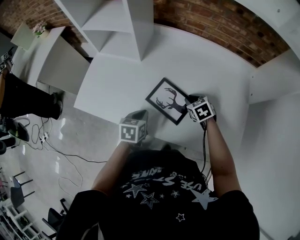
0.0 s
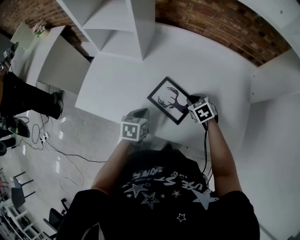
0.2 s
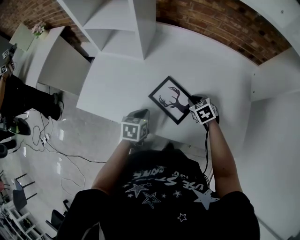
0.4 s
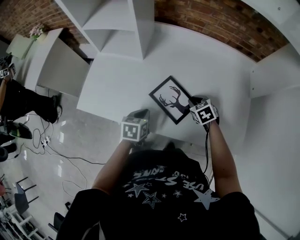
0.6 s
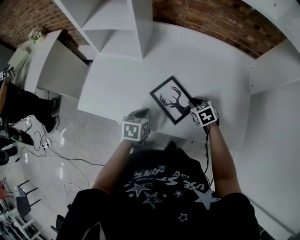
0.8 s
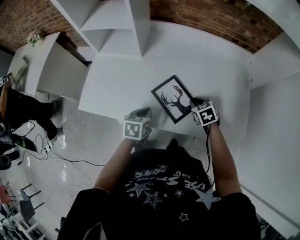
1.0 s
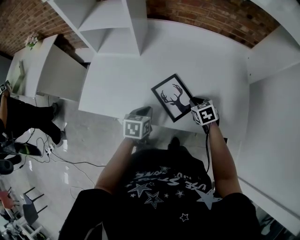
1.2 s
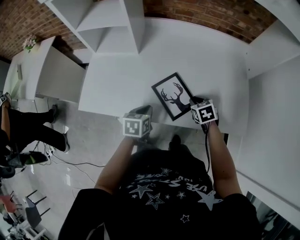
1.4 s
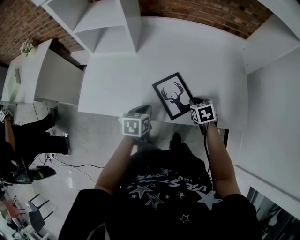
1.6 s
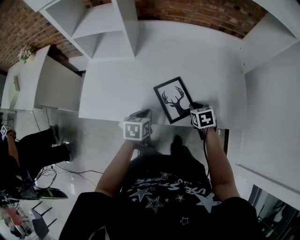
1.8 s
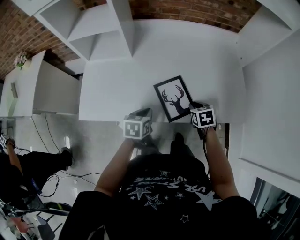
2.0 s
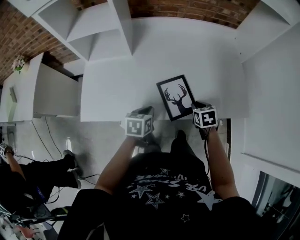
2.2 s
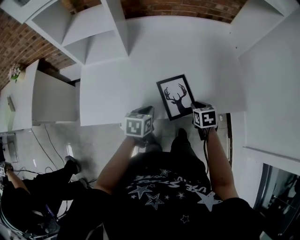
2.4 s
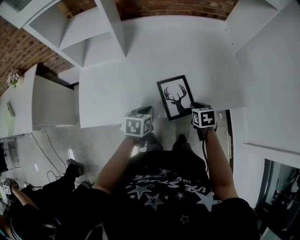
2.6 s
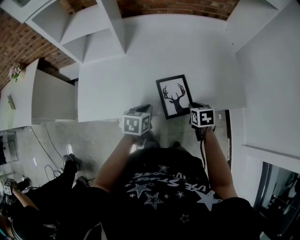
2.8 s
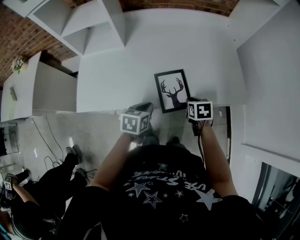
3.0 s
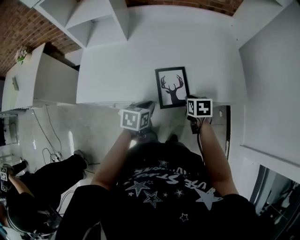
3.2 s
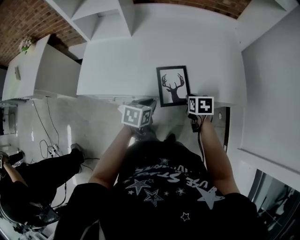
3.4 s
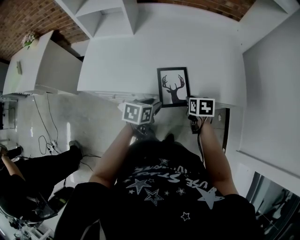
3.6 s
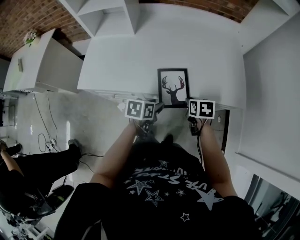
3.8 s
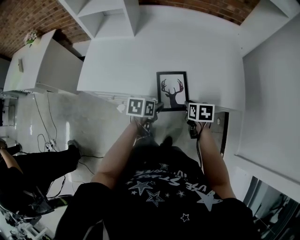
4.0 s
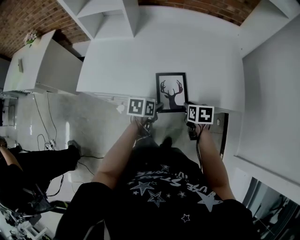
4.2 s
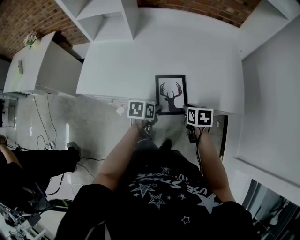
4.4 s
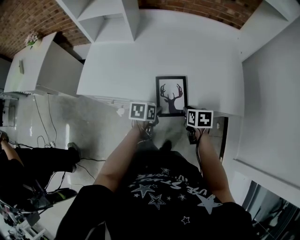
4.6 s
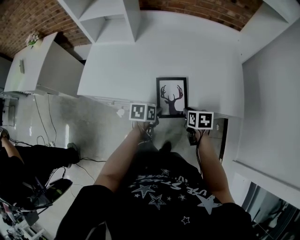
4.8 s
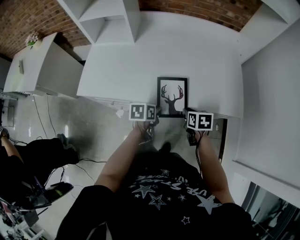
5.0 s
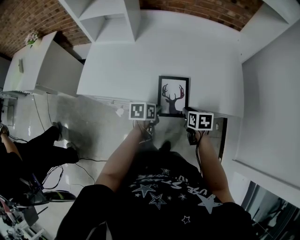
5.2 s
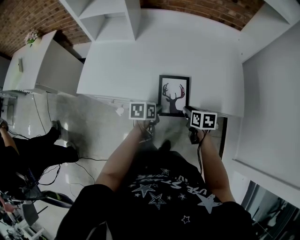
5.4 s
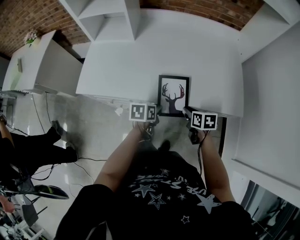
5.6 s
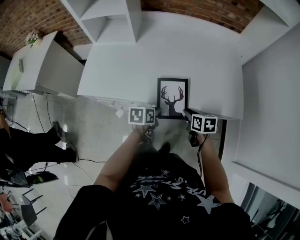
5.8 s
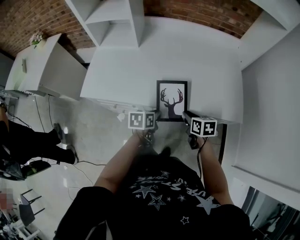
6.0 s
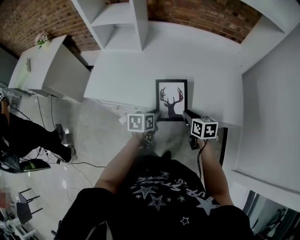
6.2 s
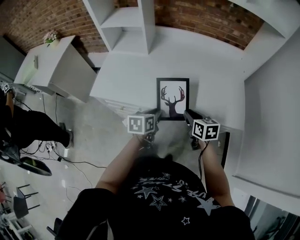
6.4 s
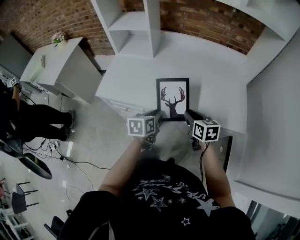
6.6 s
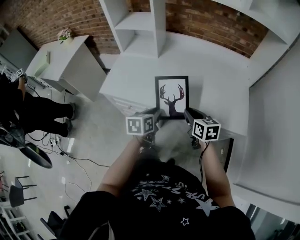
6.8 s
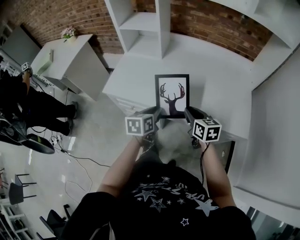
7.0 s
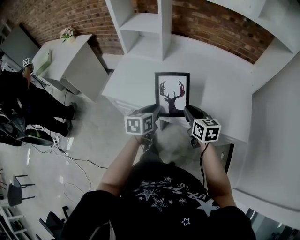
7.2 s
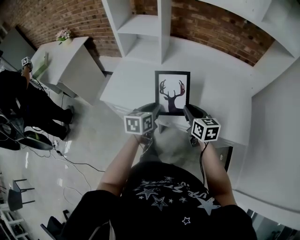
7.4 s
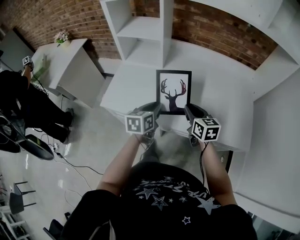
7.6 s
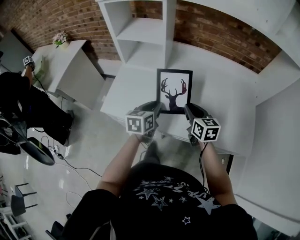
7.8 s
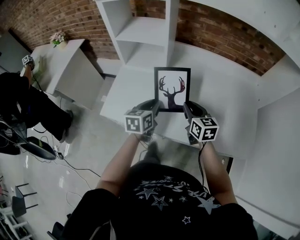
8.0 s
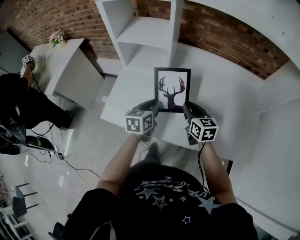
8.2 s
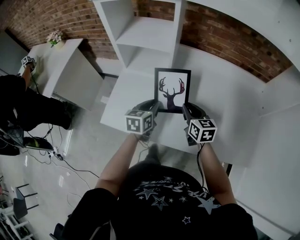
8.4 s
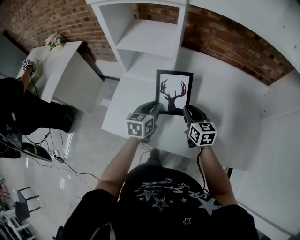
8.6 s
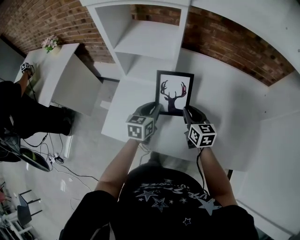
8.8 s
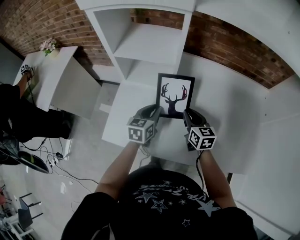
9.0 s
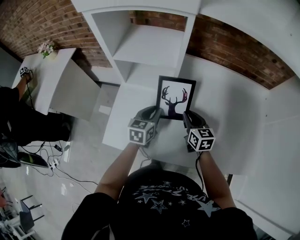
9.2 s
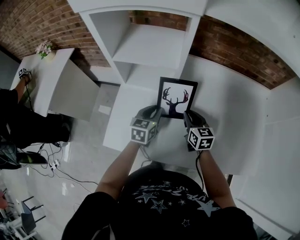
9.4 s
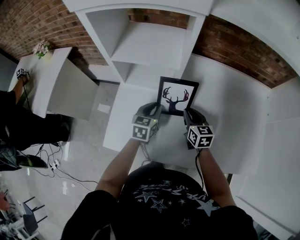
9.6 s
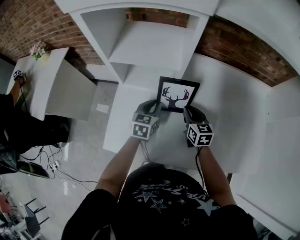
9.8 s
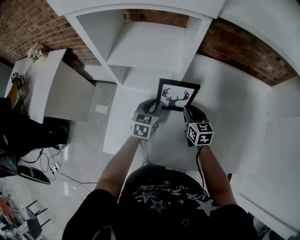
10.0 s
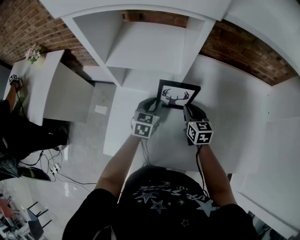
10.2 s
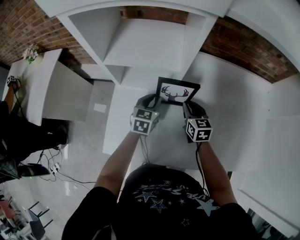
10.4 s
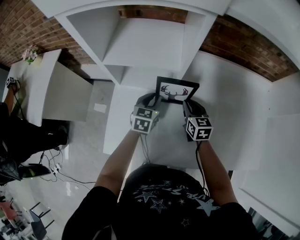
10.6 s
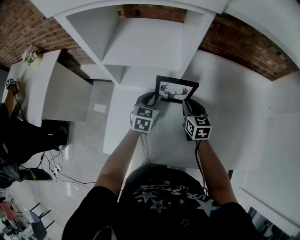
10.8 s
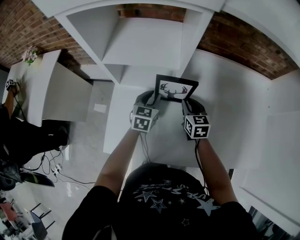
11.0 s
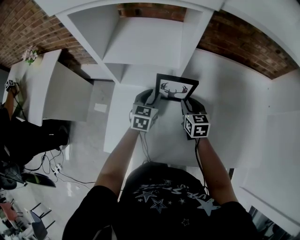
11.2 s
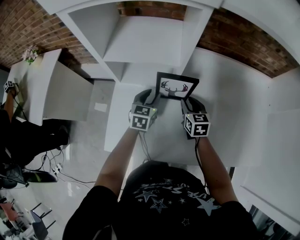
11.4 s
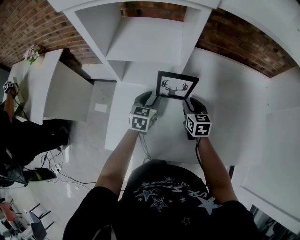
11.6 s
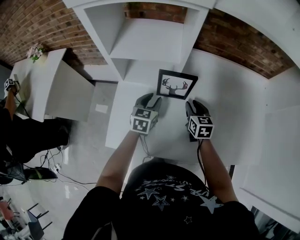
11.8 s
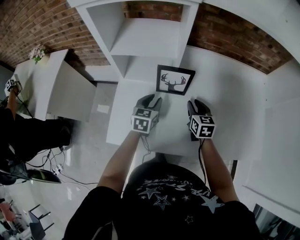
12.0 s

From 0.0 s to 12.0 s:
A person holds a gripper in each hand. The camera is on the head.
From 0.0 s to 1.6 s: The right gripper goes about 10 cm backward, and rotates about 20 degrees.
From 1.6 s to 3.0 s: The left gripper moves about 5 cm. The right gripper travels backward by some 10 cm, and rotates some 20 degrees.
From 3.0 s to 4.4 s: The left gripper goes roughly 5 cm to the right, swivels about 20 degrees, and opens its fingers.
From 4.4 s to 6.0 s: The grippers move only a little.
From 6.0 s to 7.6 s: The left gripper heads upward, to the left and forward, covering approximately 20 cm, and rotates approximately 30 degrees. The right gripper travels upward, forward and to the left by approximately 20 cm, and swivels about 30 degrees.
From 7.6 s to 9.0 s: The right gripper travels forward and to the left by some 20 cm; the left gripper is displaced forward by about 20 cm.
From 9.0 s to 10.4 s: Both grippers move forward, some 10 cm.
From 10.4 s to 12.0 s: The two grippers go some 5 cm backward.

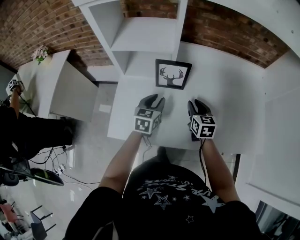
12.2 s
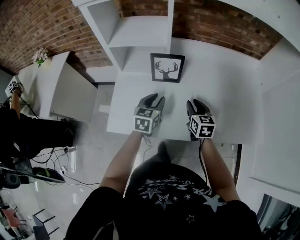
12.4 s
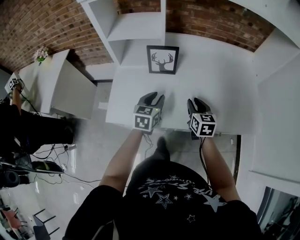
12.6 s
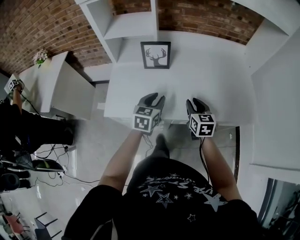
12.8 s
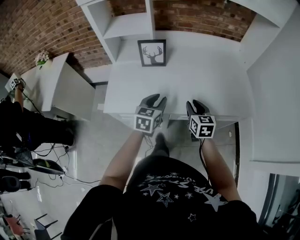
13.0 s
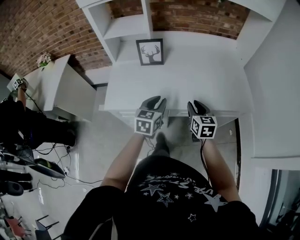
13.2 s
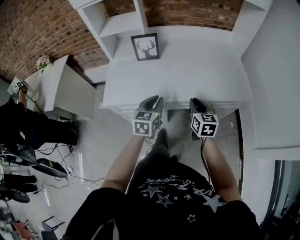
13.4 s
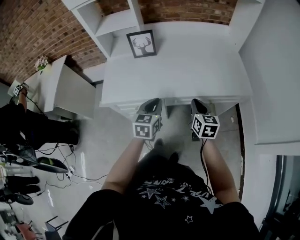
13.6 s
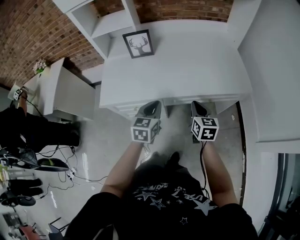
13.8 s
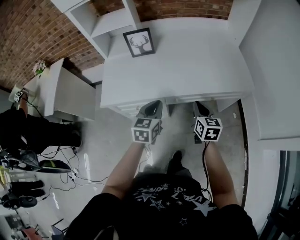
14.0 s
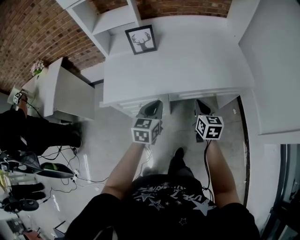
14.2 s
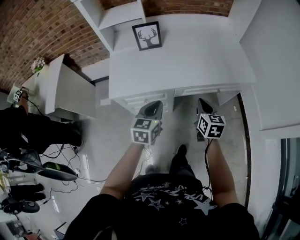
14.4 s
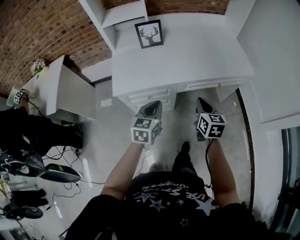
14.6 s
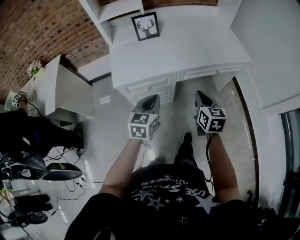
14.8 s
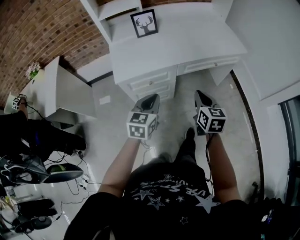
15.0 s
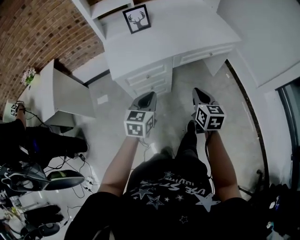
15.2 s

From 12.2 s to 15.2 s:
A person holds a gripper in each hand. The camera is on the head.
From 12.2 s to 13.8 s: Both grippers travel together backward and to the right, approximately 30 cm. The left gripper closes up. The right gripper closes up.
From 13.8 s to 15.2 s: The two grippers go approximately 25 cm backward and to the left.

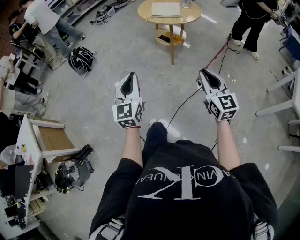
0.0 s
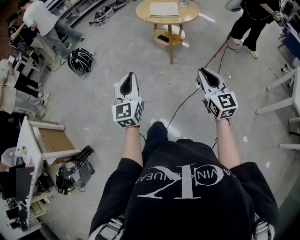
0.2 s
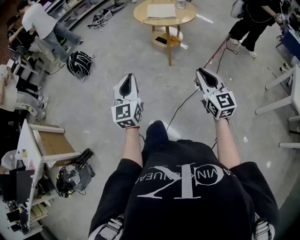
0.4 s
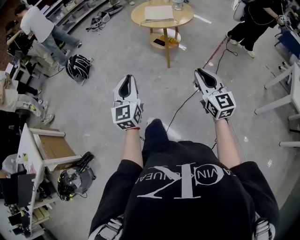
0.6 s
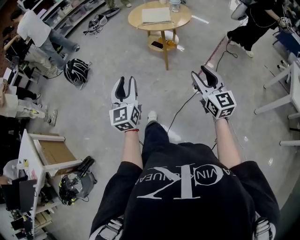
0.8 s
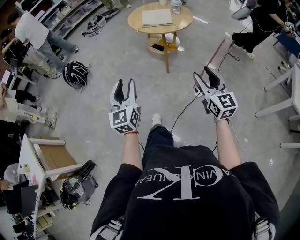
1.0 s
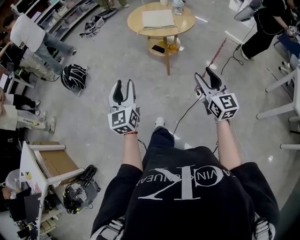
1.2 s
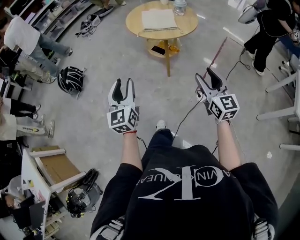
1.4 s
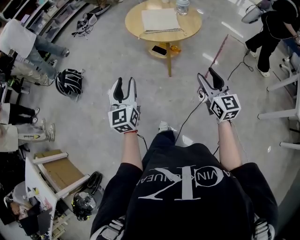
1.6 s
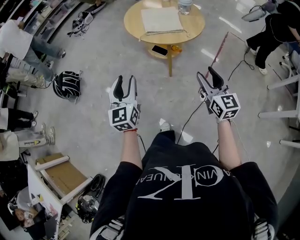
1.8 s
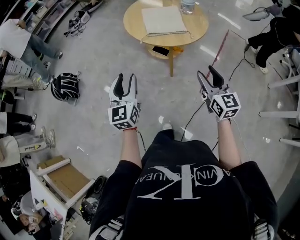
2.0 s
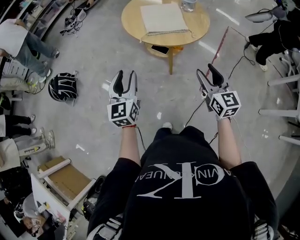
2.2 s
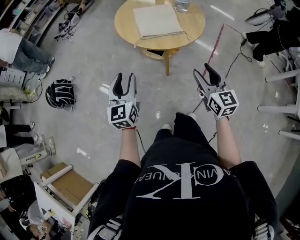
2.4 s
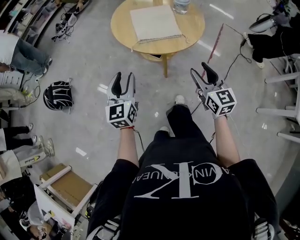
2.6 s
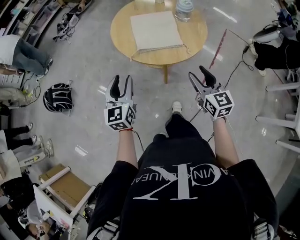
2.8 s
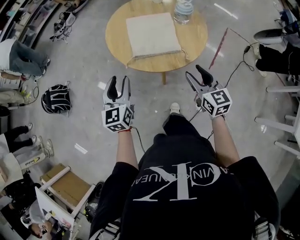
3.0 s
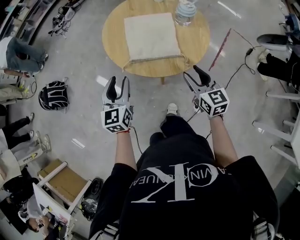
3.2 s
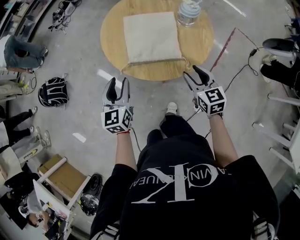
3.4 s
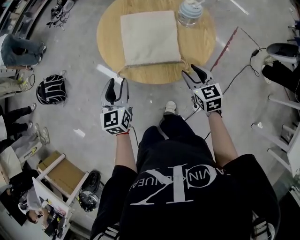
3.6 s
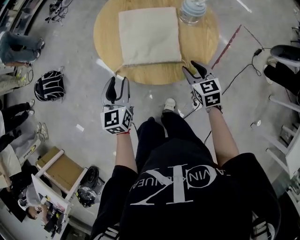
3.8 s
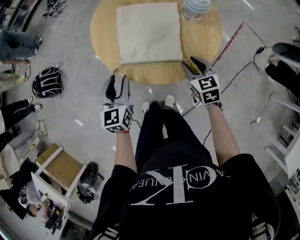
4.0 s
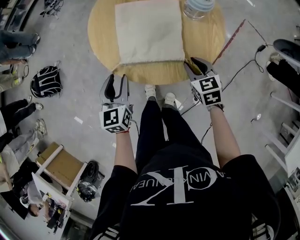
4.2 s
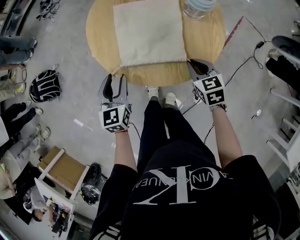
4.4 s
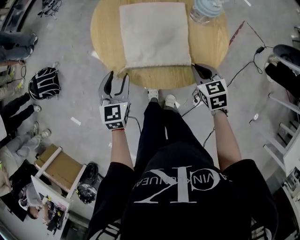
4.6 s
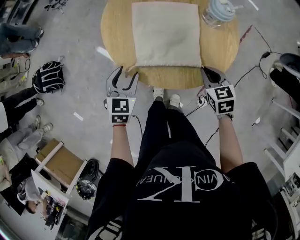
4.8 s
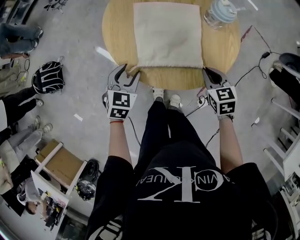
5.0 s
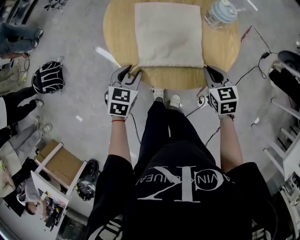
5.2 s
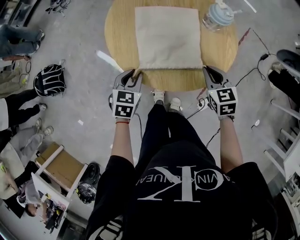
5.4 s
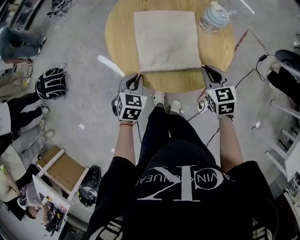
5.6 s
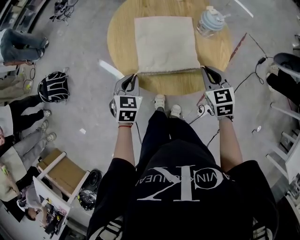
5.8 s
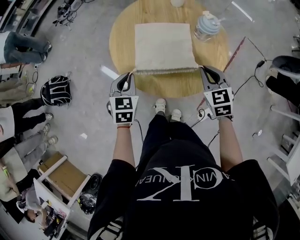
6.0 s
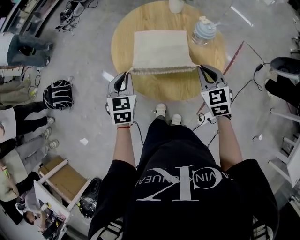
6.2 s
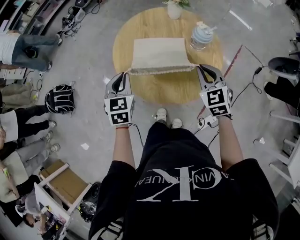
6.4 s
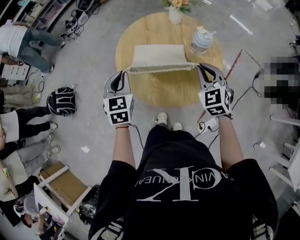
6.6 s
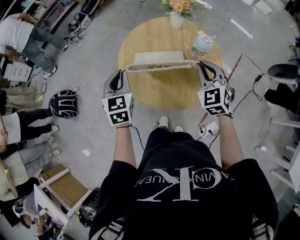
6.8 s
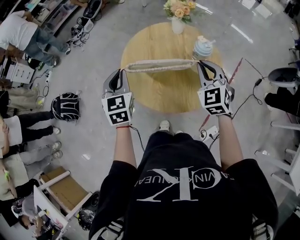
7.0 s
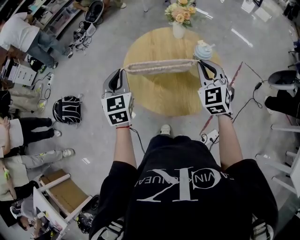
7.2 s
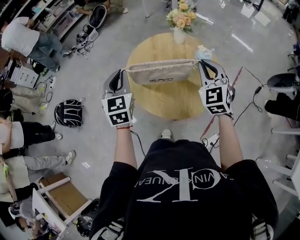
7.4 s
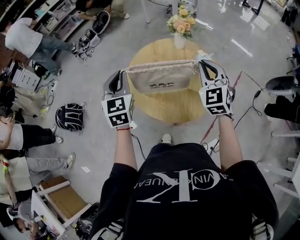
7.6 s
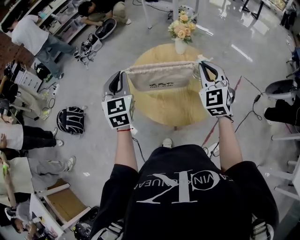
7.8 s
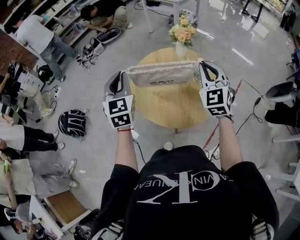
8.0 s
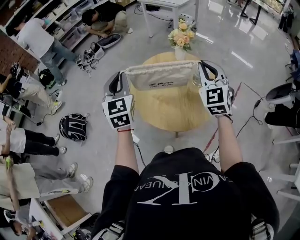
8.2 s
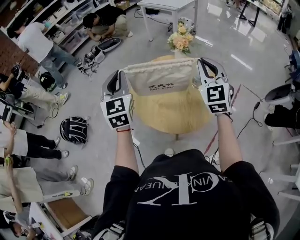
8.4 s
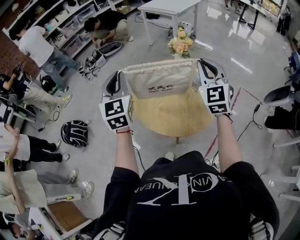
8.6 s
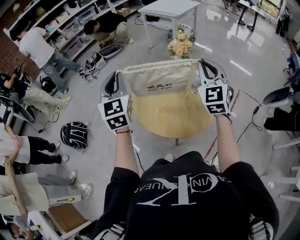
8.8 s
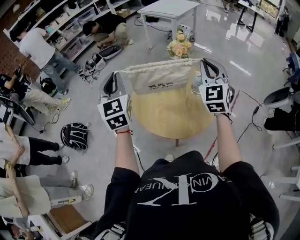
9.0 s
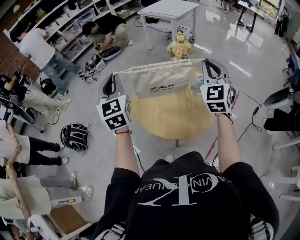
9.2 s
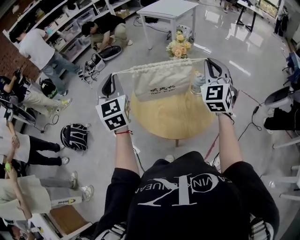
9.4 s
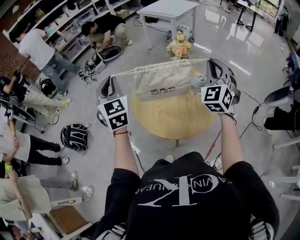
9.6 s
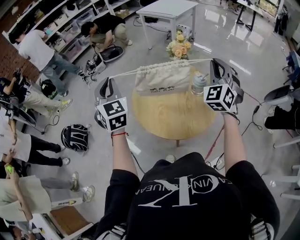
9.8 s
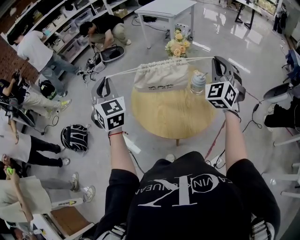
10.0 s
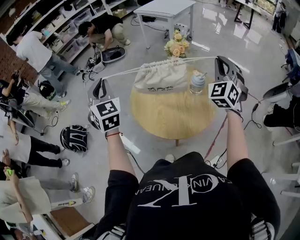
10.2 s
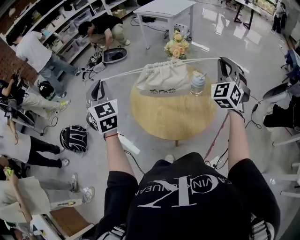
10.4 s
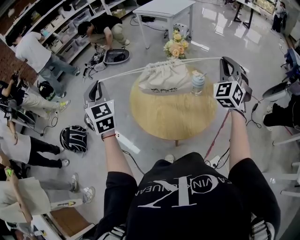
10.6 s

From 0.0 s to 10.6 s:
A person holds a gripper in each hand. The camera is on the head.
From 0.0 s to 1.6 s: The grippers both shift forward by some 25 cm. The left gripper opens up, while the right gripper opens.
From 1.6 s to 3.0 s: The two grippers go some 30 cm forward.
From 3.0 s to 4.6 s: Both grippers travel together downward and forward, some 20 cm. The right gripper angles its fingers downward, by about 30 degrees, and closes. The left gripper rotates approximately 20 degrees.
From 4.6 s to 6.0 s: The right gripper goes roughly 10 cm upward. The left gripper moves approximately 5 cm, and closes up.
From 6.0 s to 7.6 s: The grippers both shift upward by about 20 cm. The left gripper swivels some 30 degrees. Meanwhile the right gripper turns by about 30 degrees.
From 7.6 s to 9.0 s: The two grippers go about 10 cm upward.
From 9.0 s to 10.6 s: The right gripper shifts roughly 10 cm to the right, and swivels roughly 30 degrees. The left gripper goes some 5 cm to the left.
